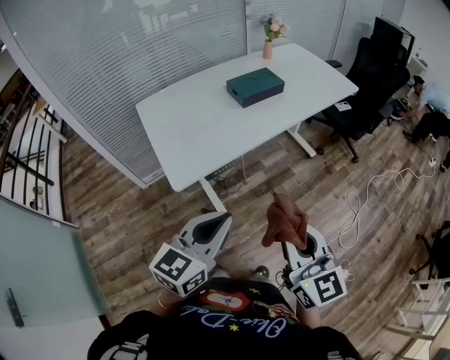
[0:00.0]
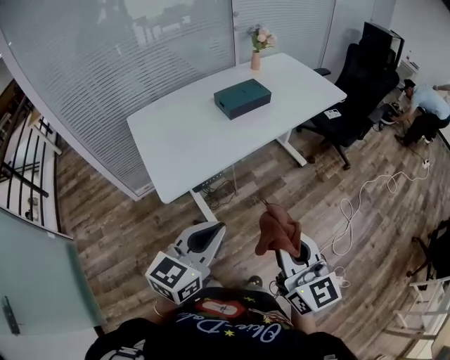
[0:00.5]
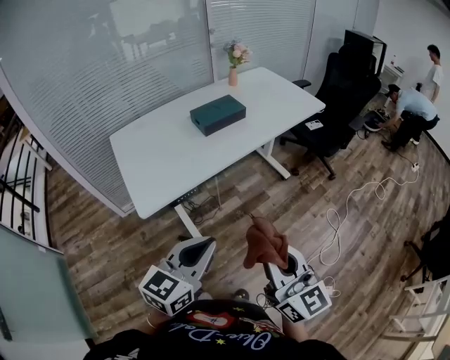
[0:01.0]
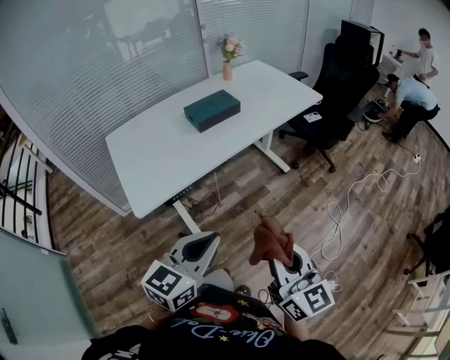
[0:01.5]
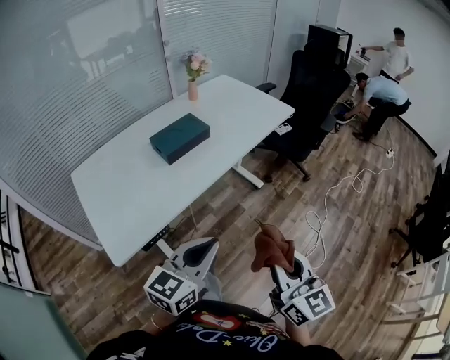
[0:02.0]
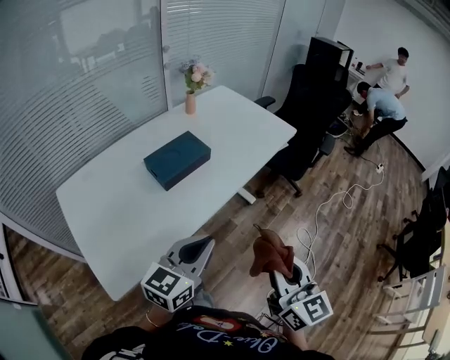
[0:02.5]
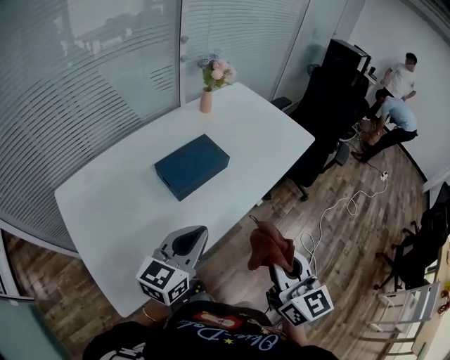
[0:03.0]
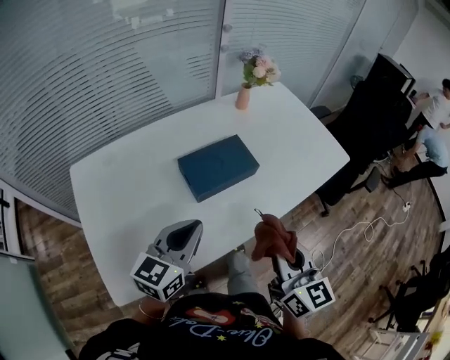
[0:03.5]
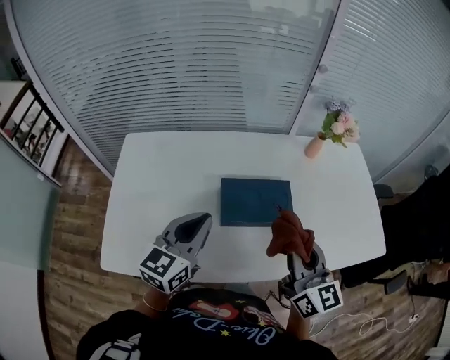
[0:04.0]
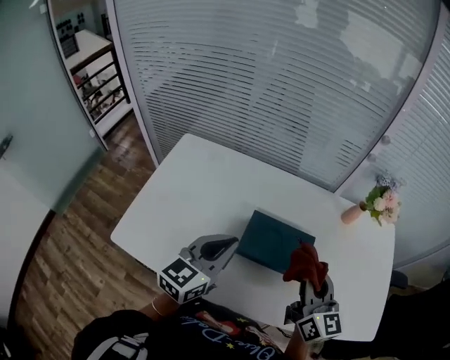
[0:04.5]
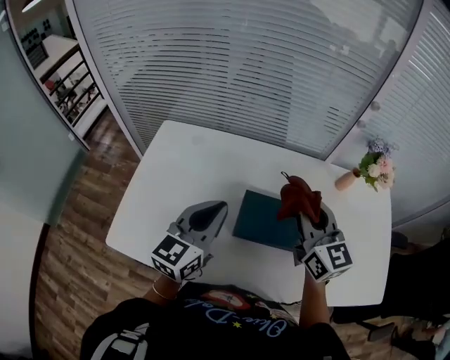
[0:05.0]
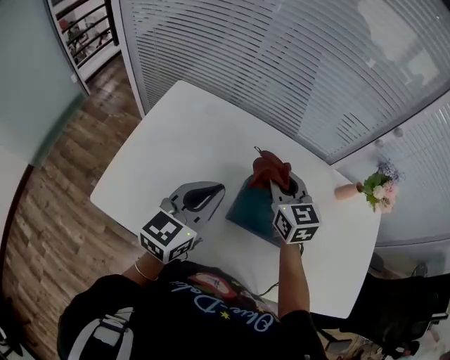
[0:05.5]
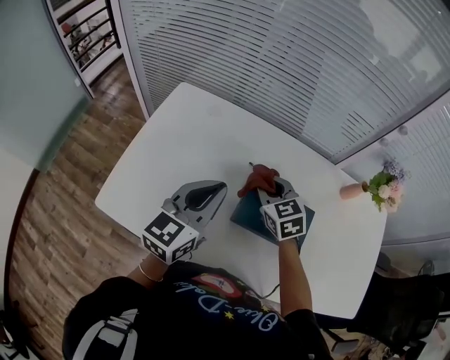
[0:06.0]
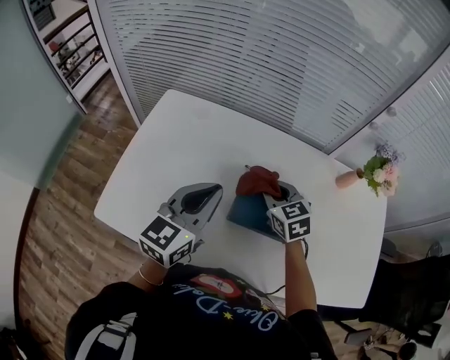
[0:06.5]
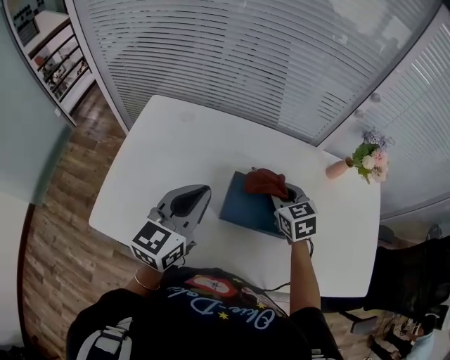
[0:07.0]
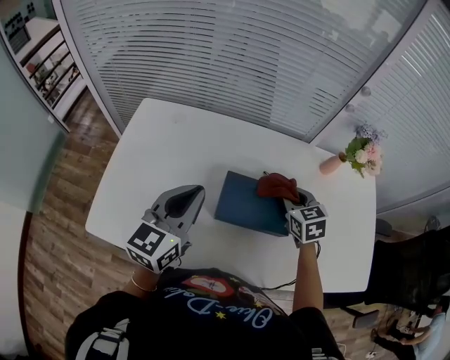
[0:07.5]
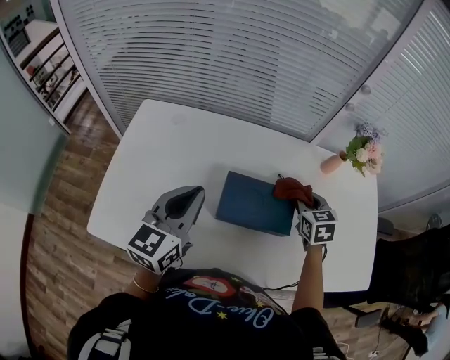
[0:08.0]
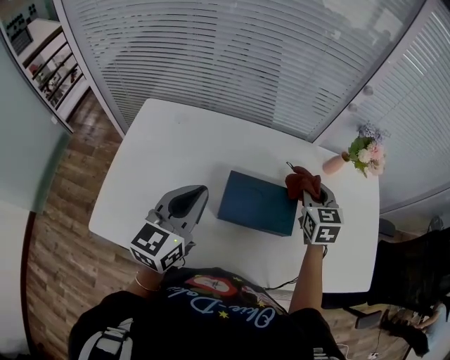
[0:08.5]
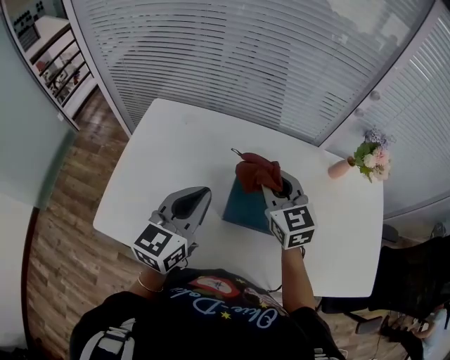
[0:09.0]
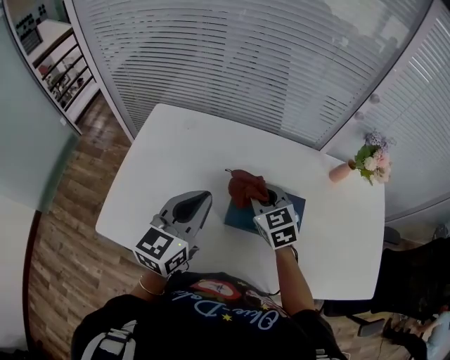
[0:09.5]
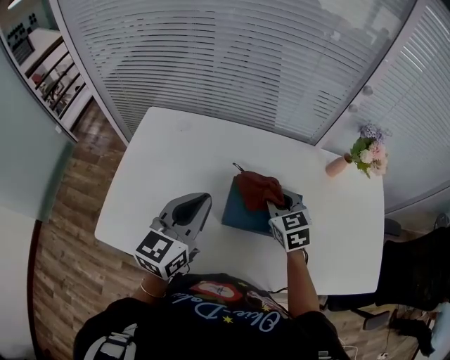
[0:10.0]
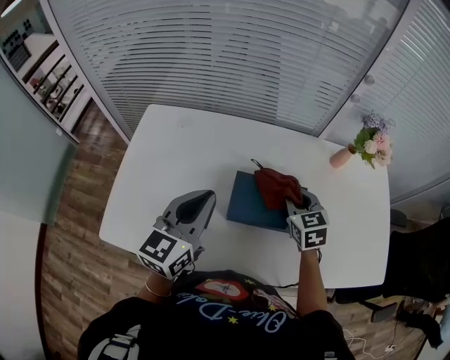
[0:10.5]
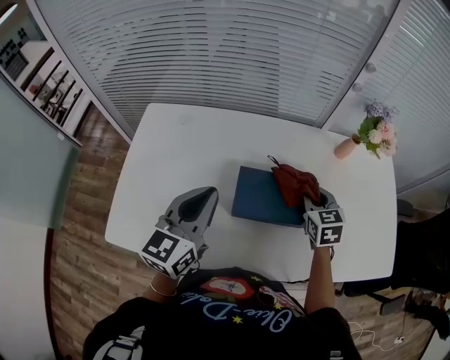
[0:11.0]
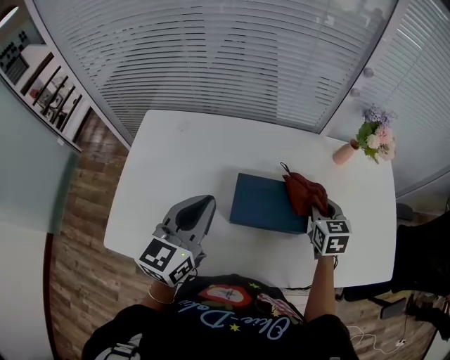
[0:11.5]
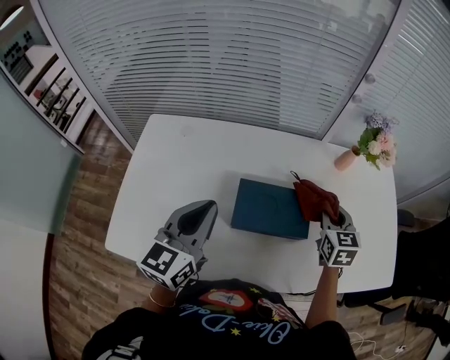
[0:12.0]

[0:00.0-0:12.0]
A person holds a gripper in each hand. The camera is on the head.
0:00.0 to 0:02.0: The right gripper goes approximately 20 cm to the right and forward. Meanwhile the left gripper shifts approximately 20 cm forward and to the right.
0:02.0 to 0:04.0: The pair of grippers is taken about 50 cm. The left gripper changes its angle by some 50 degrees. Meanwhile the right gripper changes its angle by roughly 40 degrees.
0:04.0 to 0:06.0: The left gripper shifts by some 5 cm; the right gripper ends up some 30 cm from where it was, and tips its fingers downward by roughly 30 degrees.
0:06.0 to 0:08.0: The right gripper heads to the right, covering approximately 25 cm, and rotates approximately 30 degrees.
0:08.0 to 0:10.0: The right gripper shifts approximately 15 cm to the left.
0:10.0 to 0:12.0: The right gripper goes roughly 15 cm to the right, and turns by some 30 degrees.

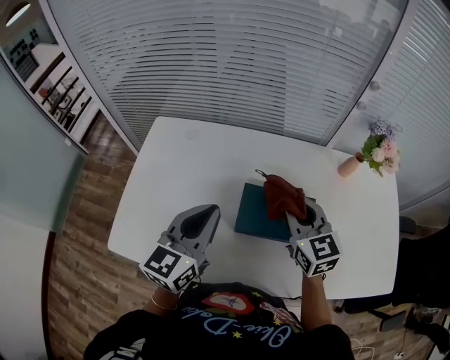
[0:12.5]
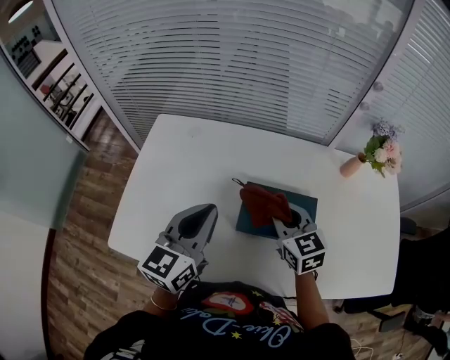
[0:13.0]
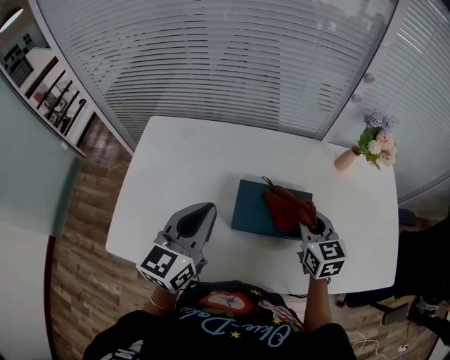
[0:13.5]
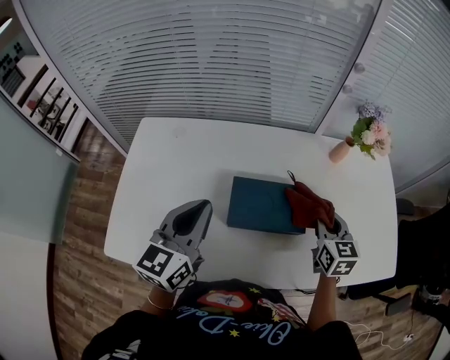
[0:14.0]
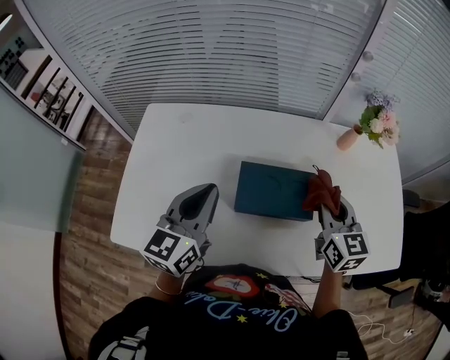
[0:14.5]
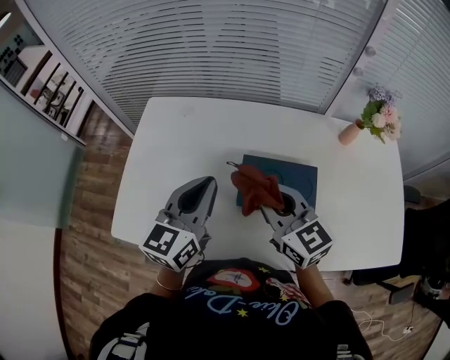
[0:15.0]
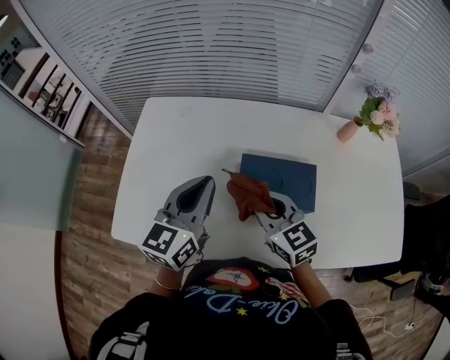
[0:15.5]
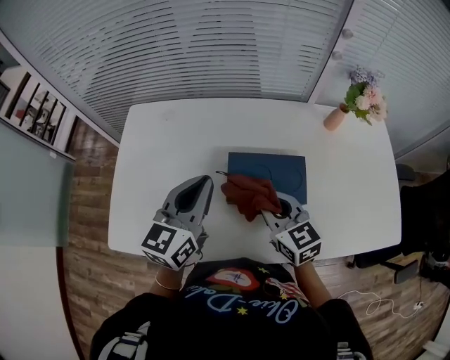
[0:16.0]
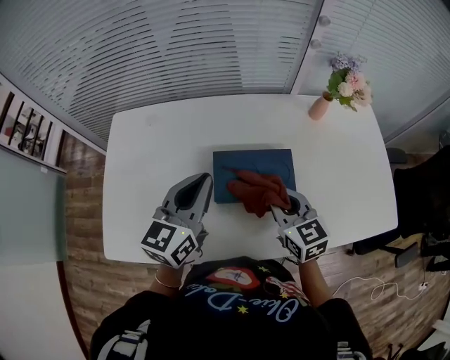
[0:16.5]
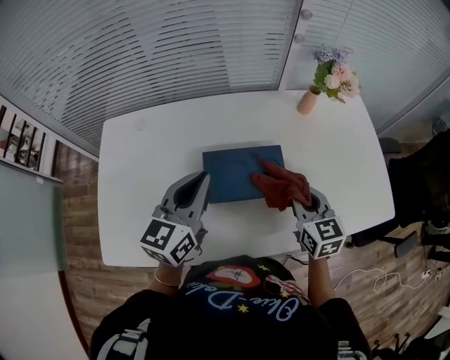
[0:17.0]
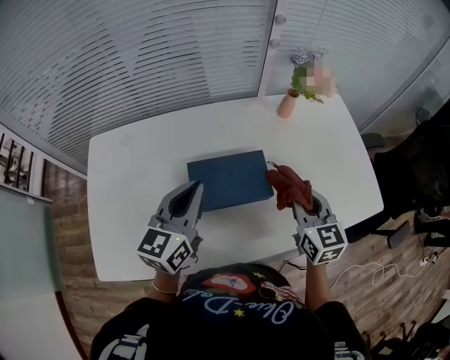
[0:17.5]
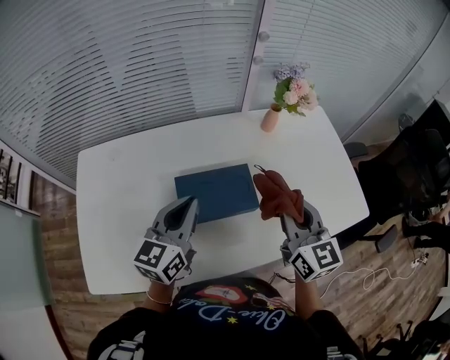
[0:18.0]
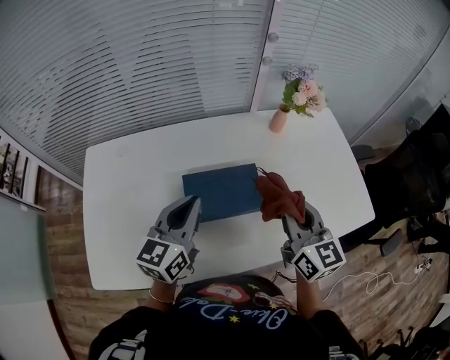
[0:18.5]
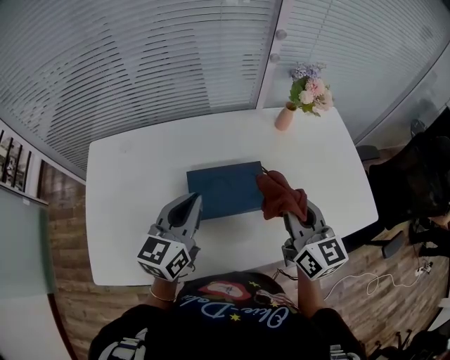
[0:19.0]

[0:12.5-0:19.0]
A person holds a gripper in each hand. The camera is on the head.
0:12.5 to 0:14.5: The right gripper shifts some 10 cm to the right.
0:14.5 to 0:17.0: The left gripper travels to the right by roughly 5 cm; the right gripper travels downward and backward by about 10 cm, and goes to the left and returns, about 20 cm each way.
0:17.0 to 0:19.0: The right gripper heads upward, covering about 10 cm, and rotates about 20 degrees.

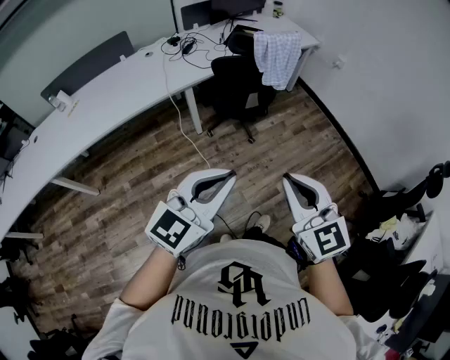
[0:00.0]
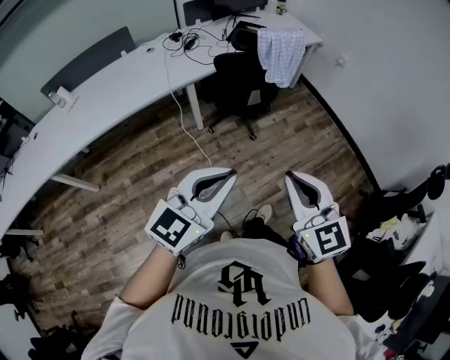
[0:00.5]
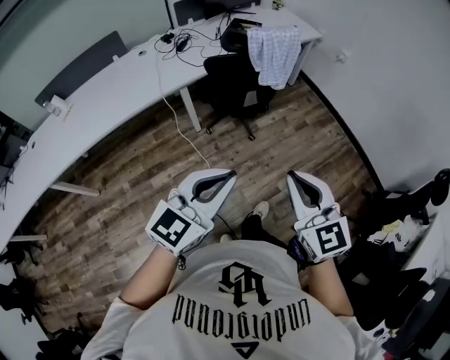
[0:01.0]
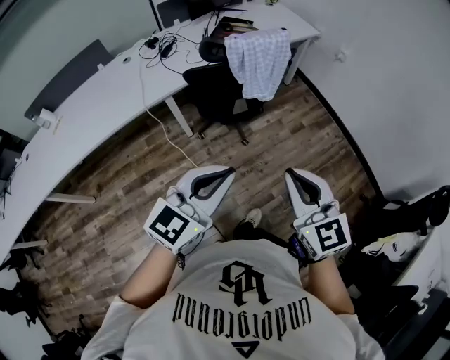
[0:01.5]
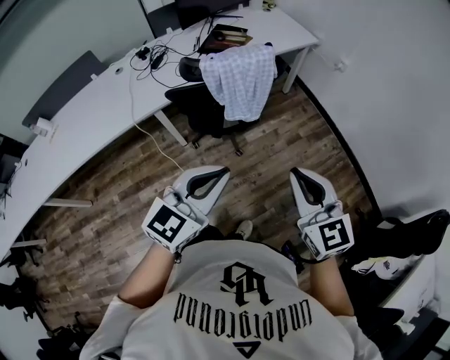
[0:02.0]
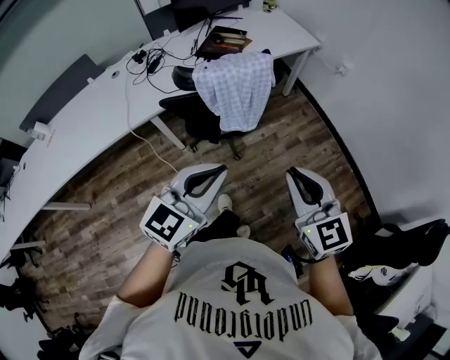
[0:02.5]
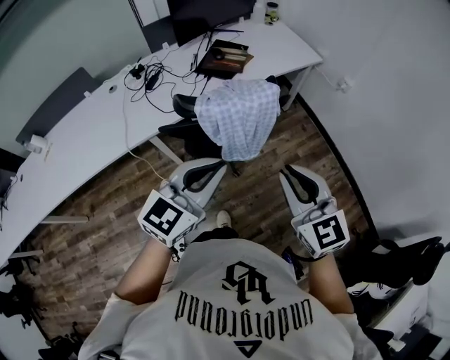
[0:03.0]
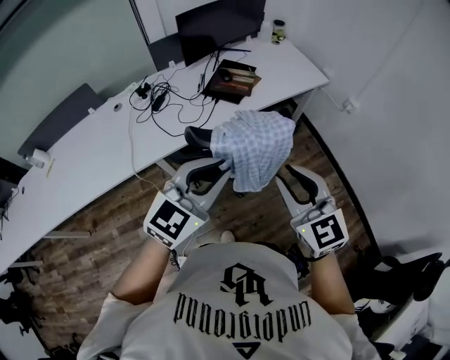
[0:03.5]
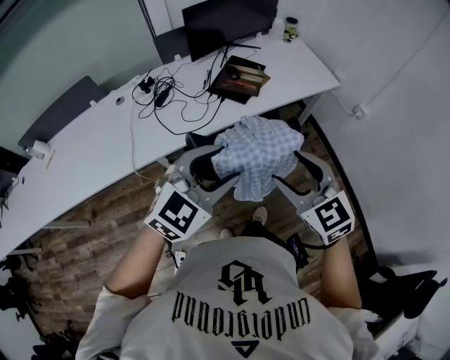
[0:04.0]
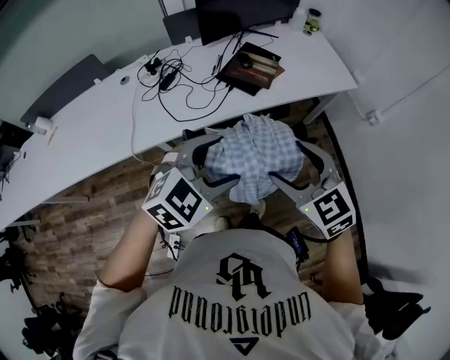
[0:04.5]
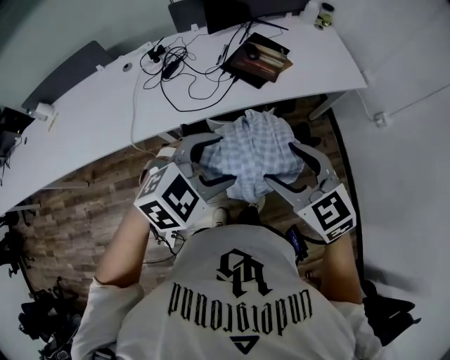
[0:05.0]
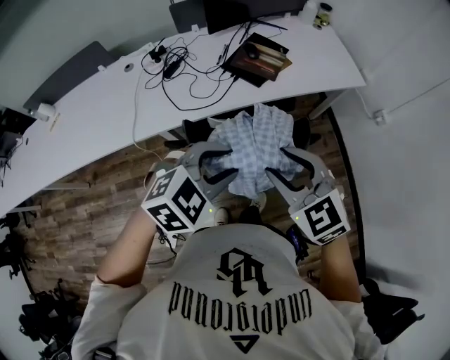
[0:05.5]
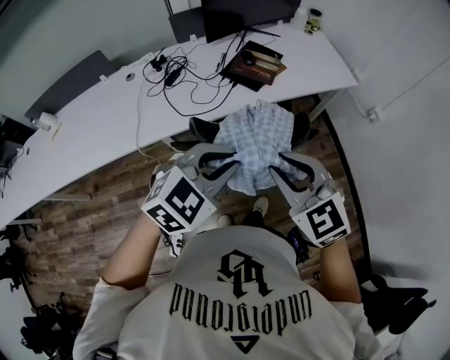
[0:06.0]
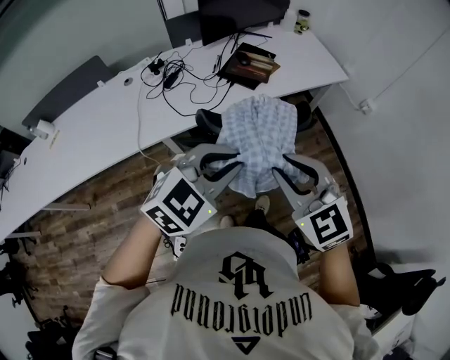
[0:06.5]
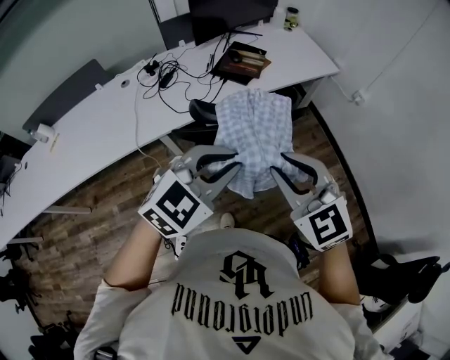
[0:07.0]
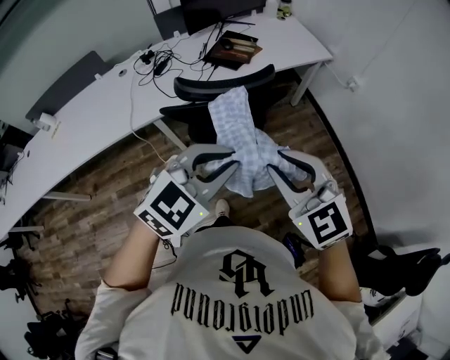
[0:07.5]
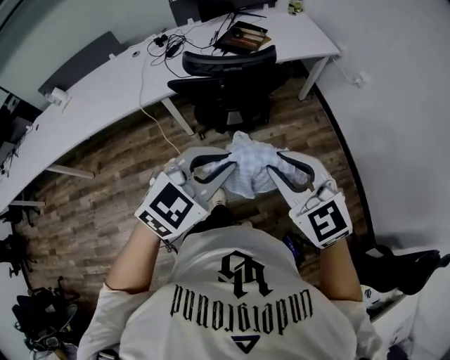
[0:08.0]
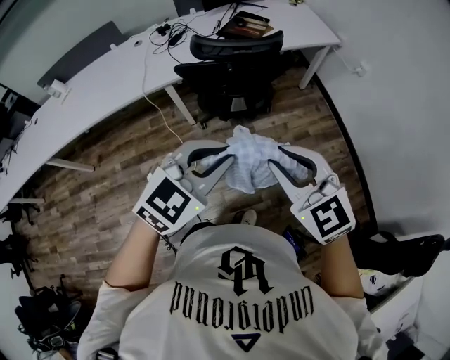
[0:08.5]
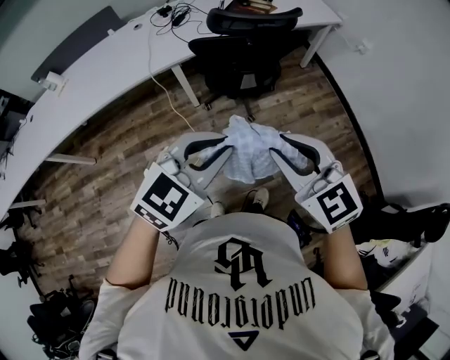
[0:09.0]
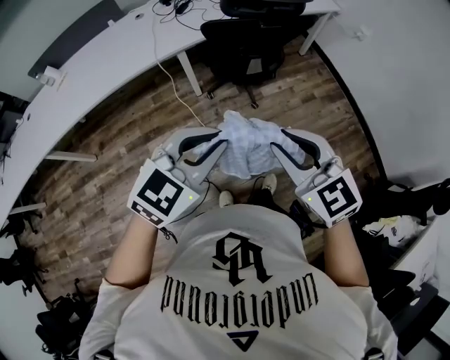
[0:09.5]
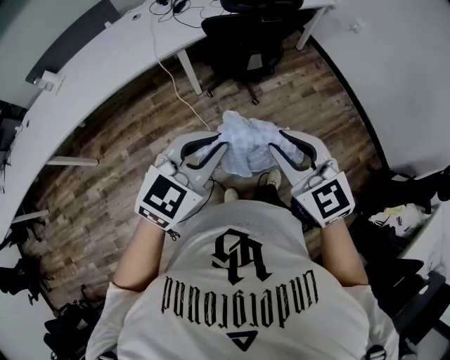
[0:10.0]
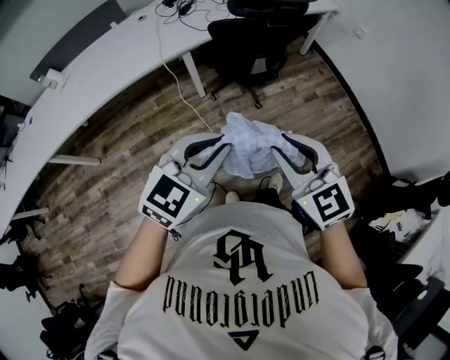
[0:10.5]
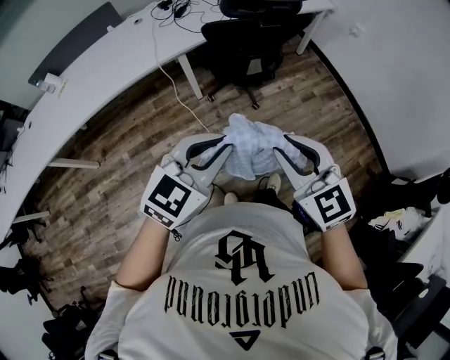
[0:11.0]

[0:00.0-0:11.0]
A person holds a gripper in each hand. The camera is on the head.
0:00.0 to 0:02.0: The grippers both shift forward and to the right by approximately 35 cm.
0:02.0 to 0:03.5: The two grippers go roughly 25 cm forward.
0:03.5 to 0:05.5: Both grippers move forward and downward, approximately 10 cm. The left gripper points its fingers approximately 30 degrees further downward, and opens, then closes once more; the right gripper turns by about 30 degrees, and opens, then closes again.
0:05.5 to 0:07.5: The grippers both shift backward by roughly 20 cm.
0:07.5 to 0:09.0: The grippers both shift backward and to the left by some 25 cm.
0:09.0 to 0:11.0: The right gripper moves backward and to the left, some 10 cm. Meanwhile the left gripper goes some 15 cm to the left and backward.
